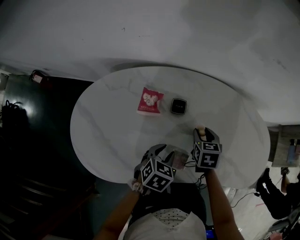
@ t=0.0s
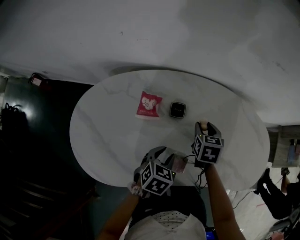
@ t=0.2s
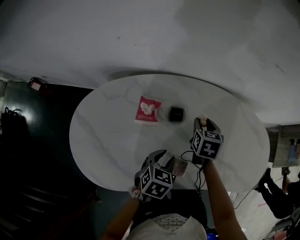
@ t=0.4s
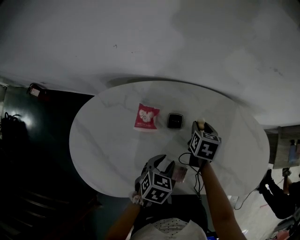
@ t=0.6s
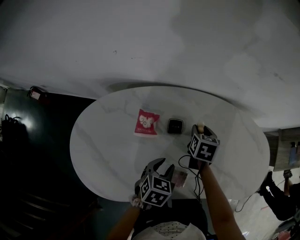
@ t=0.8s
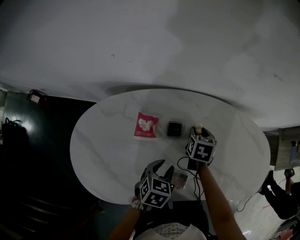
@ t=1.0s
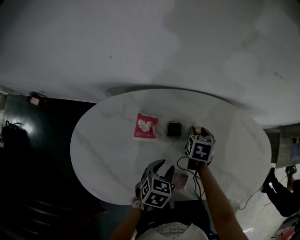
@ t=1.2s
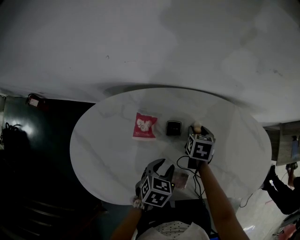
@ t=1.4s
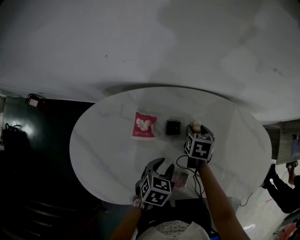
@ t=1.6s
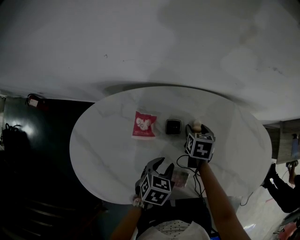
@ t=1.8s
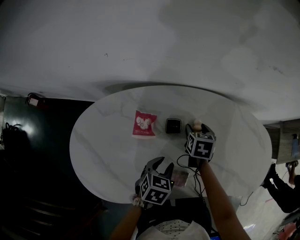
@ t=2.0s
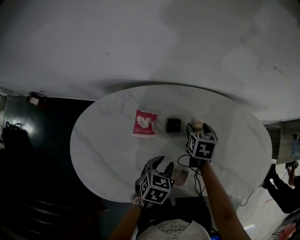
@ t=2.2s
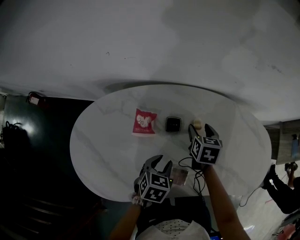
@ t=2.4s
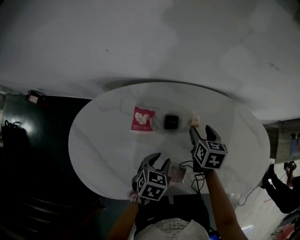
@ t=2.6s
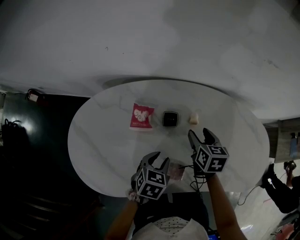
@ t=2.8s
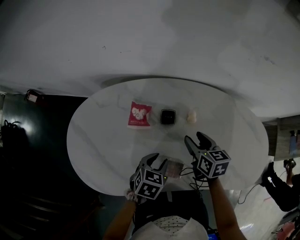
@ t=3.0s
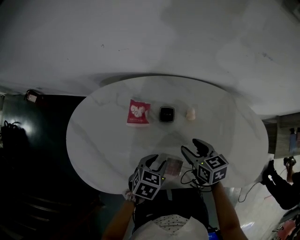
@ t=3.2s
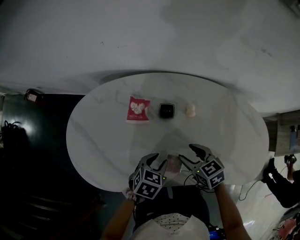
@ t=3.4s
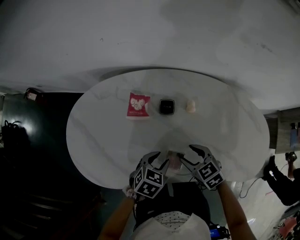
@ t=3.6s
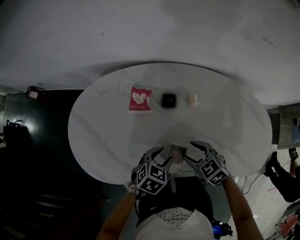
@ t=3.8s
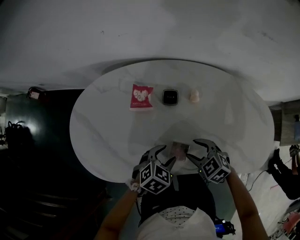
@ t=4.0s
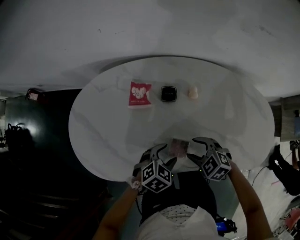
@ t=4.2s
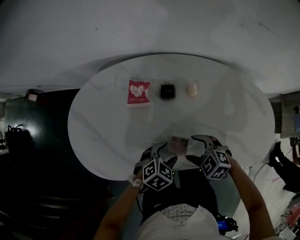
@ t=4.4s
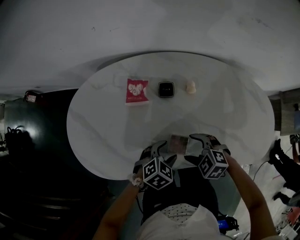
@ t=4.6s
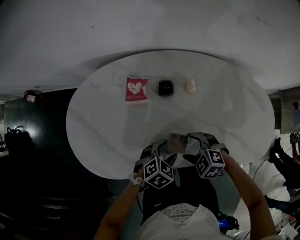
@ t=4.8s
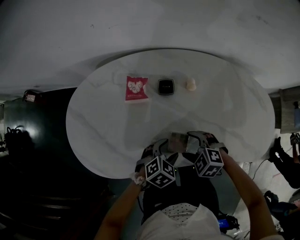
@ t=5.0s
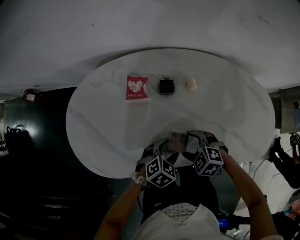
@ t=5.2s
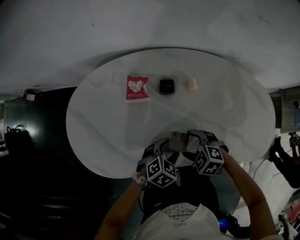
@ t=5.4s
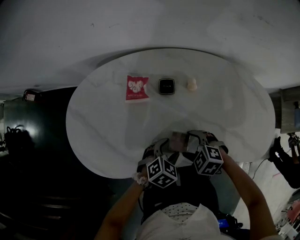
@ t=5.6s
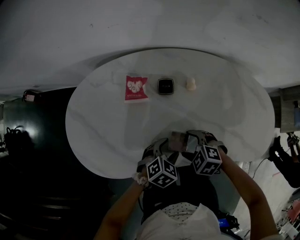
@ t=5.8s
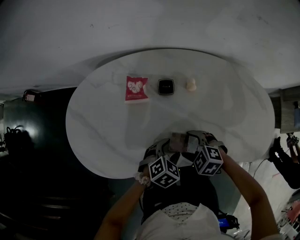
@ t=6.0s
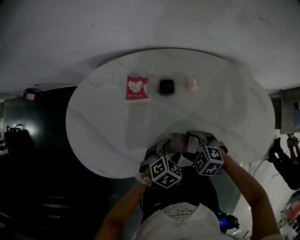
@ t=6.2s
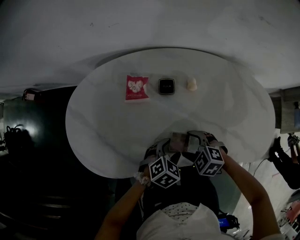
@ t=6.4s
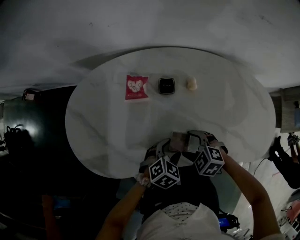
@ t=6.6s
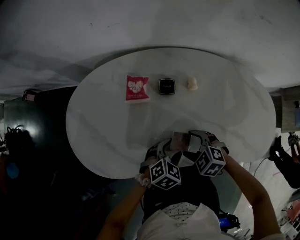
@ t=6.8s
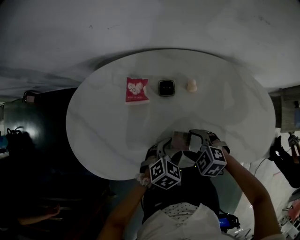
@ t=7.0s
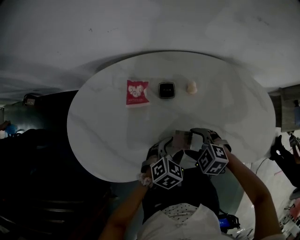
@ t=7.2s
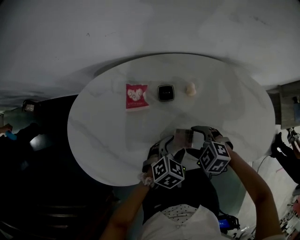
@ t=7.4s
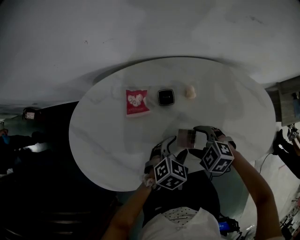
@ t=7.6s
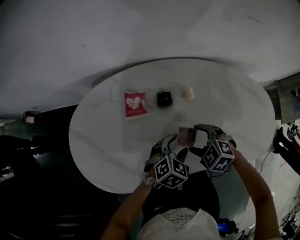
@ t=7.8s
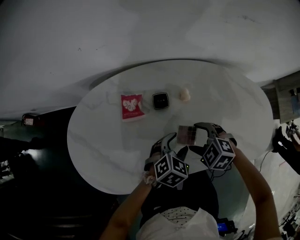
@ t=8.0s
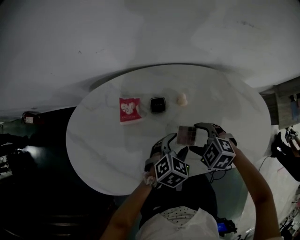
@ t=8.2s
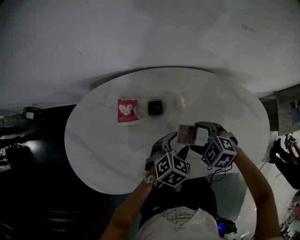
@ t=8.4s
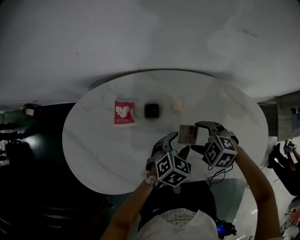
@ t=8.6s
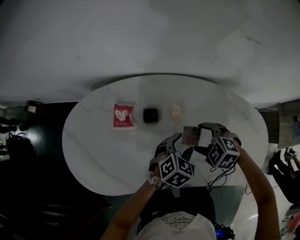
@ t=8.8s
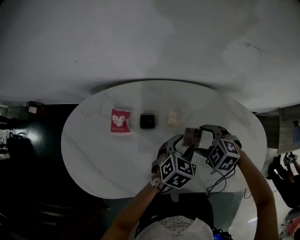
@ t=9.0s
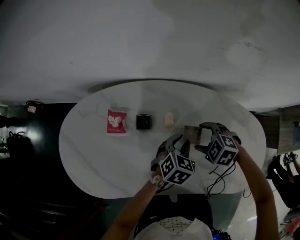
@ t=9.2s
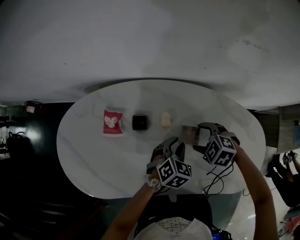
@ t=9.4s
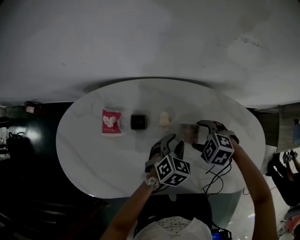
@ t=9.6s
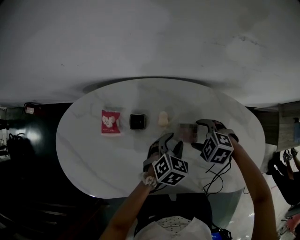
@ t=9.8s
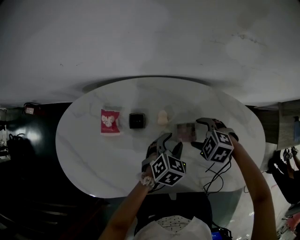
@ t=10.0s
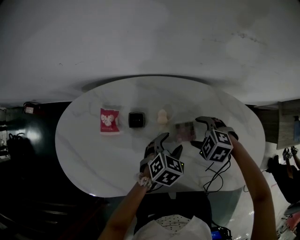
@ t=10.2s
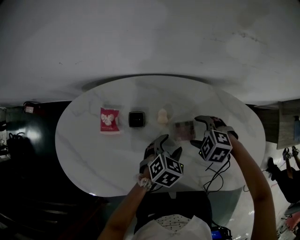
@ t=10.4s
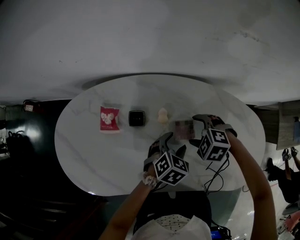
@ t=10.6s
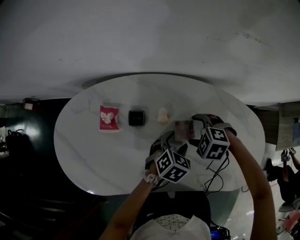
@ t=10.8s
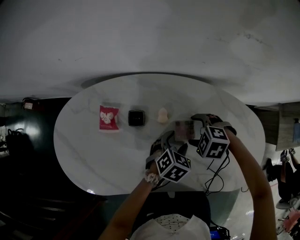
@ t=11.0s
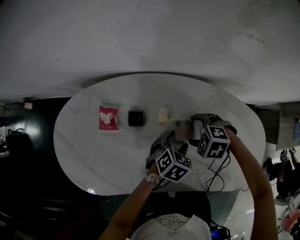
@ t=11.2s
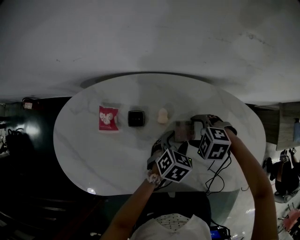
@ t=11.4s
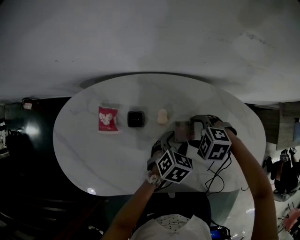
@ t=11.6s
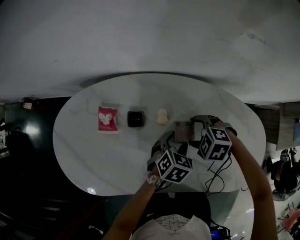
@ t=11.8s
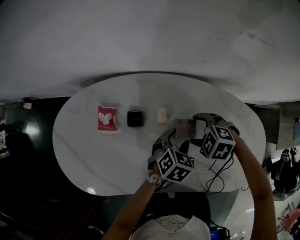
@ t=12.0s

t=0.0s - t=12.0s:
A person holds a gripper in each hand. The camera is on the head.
t=0.0s - t=1.6s: The right gripper goes some 10 cm forward.
t=1.6s - t=3.0s: The right gripper is displaced backward and upward by about 10 cm, and turns by some 30 degrees.
t=3.0s - t=4.4s: The right gripper moves about 15 cm, and rotates around the line of its fingers by roughly 50 degrees, counterclockwise from behind; the left gripper ends up some 10 cm from where it was, turns by about 30 degrees, and opens.
t=4.4s - t=6.0s: The grippers move only a little.
t=6.0s - t=7.6s: The right gripper ends up some 5 cm from where it was. The left gripper changes place by approximately 5 cm.
t=7.6s - t=9.0s: The grippers both shift to the right and forward by approximately 15 cm.
t=9.0s - t=12.0s: There are only small adjustments of the grippers.

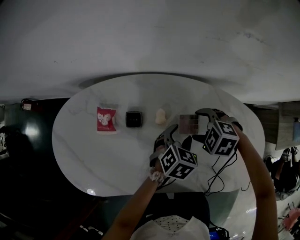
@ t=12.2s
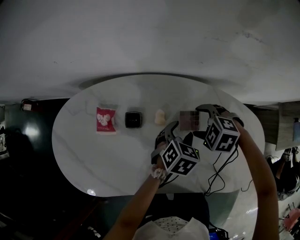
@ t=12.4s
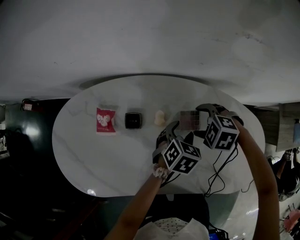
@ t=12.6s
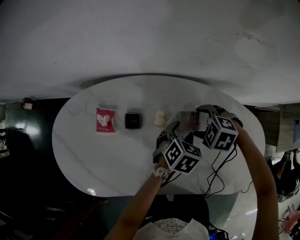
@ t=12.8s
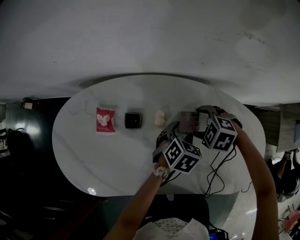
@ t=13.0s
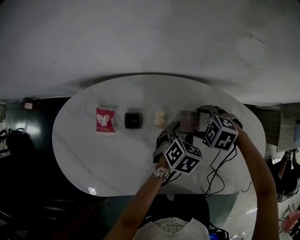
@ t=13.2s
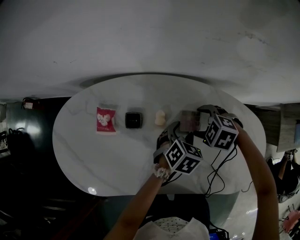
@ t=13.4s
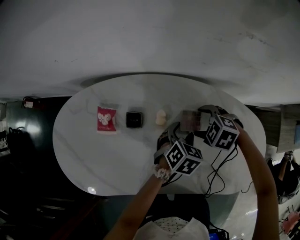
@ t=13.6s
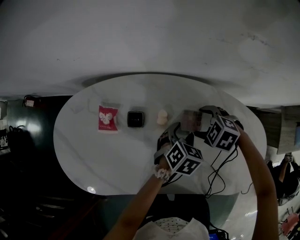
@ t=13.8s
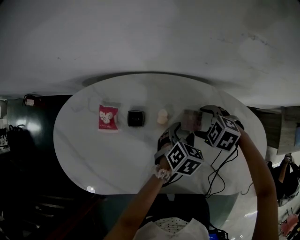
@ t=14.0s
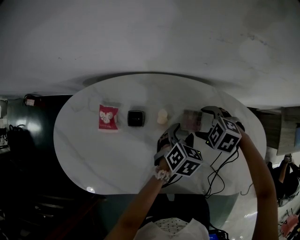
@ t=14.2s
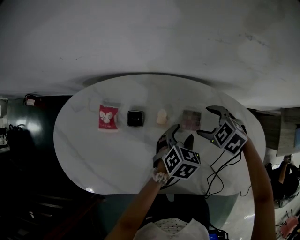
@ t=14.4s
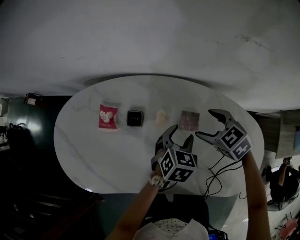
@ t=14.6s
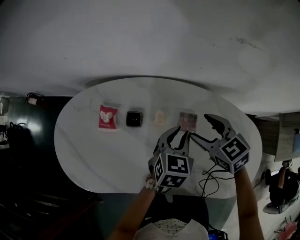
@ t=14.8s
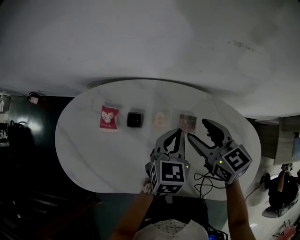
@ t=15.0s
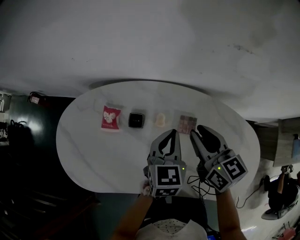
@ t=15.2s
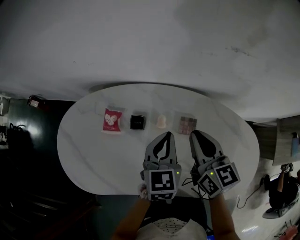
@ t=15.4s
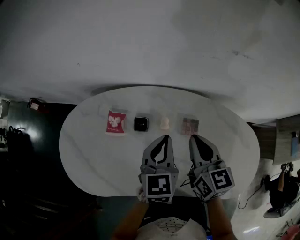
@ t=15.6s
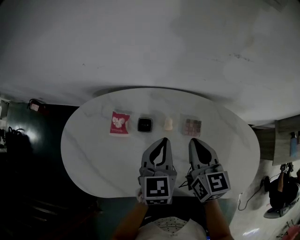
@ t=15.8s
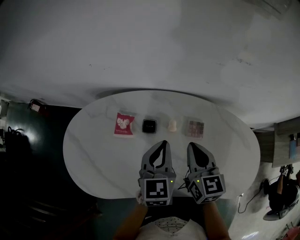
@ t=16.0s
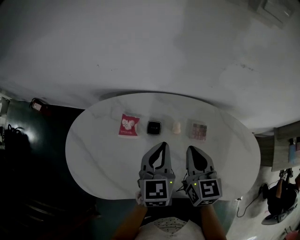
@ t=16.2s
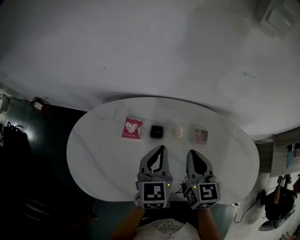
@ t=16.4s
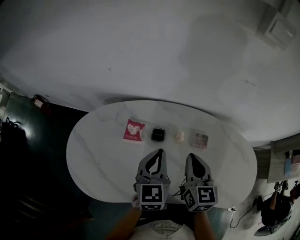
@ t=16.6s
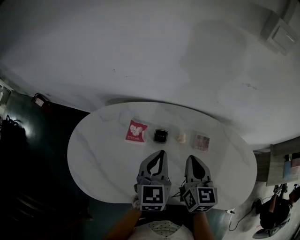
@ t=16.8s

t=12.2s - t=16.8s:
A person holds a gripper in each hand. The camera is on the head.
t=12.2s - t=13.8s: The grippers move only a little.
t=13.8s - t=15.2s: Both grippers travel together upward, about 15 cm. The right gripper angles its fingers upward, by some 50 degrees, and closes its fingers; the left gripper swivels some 30 degrees, and closes.
t=15.2s - t=16.8s: The right gripper travels to the left and backward by roughly 10 cm, and swivels about 20 degrees. The left gripper heads to the left and upward, covering roughly 15 cm.

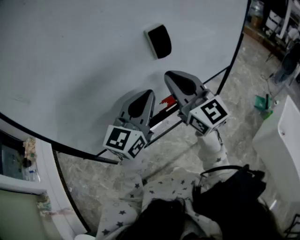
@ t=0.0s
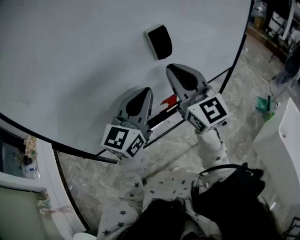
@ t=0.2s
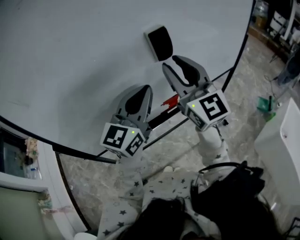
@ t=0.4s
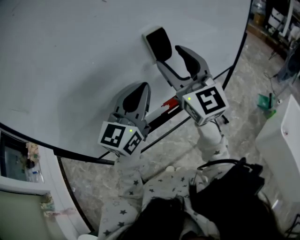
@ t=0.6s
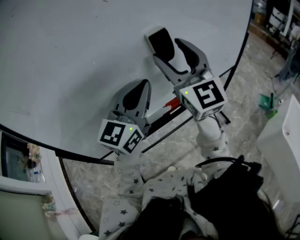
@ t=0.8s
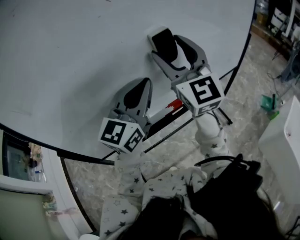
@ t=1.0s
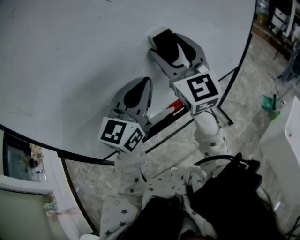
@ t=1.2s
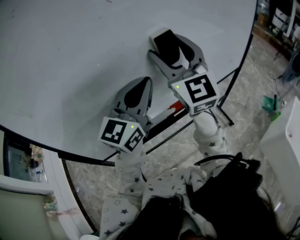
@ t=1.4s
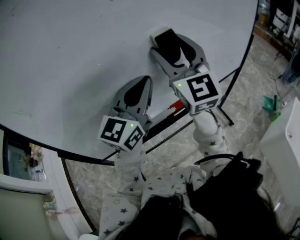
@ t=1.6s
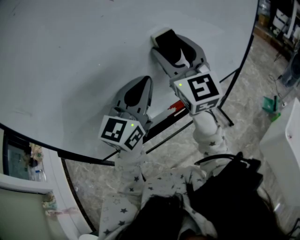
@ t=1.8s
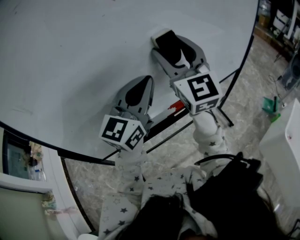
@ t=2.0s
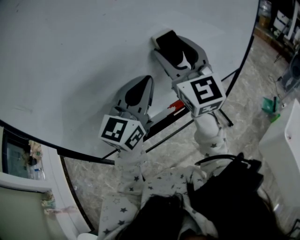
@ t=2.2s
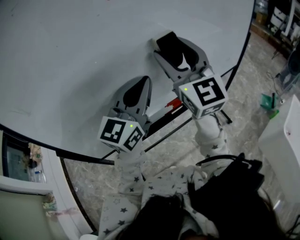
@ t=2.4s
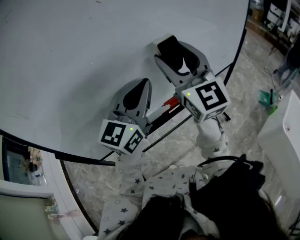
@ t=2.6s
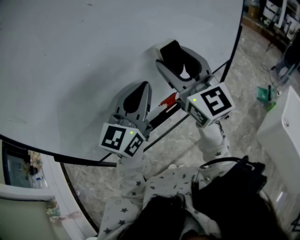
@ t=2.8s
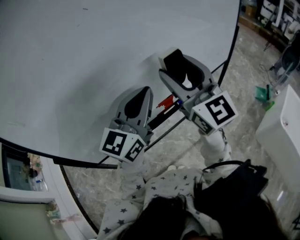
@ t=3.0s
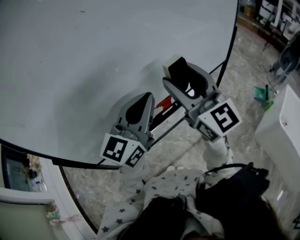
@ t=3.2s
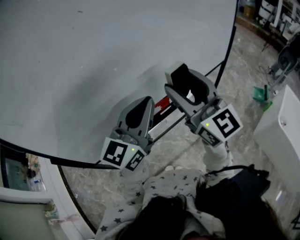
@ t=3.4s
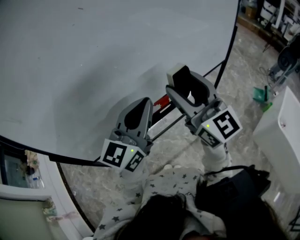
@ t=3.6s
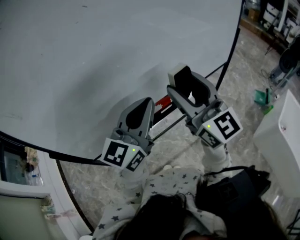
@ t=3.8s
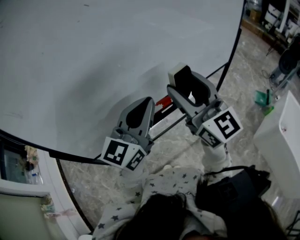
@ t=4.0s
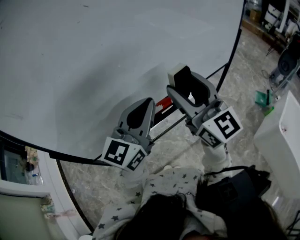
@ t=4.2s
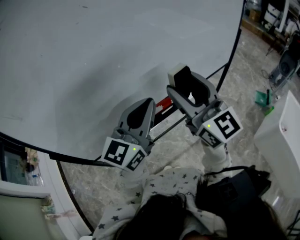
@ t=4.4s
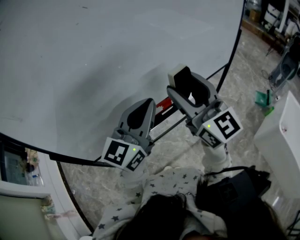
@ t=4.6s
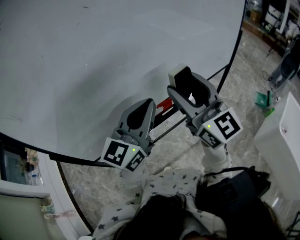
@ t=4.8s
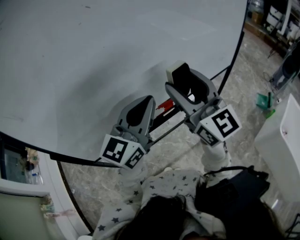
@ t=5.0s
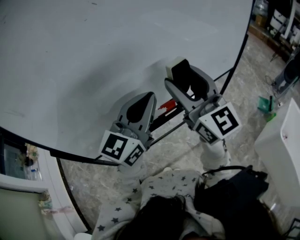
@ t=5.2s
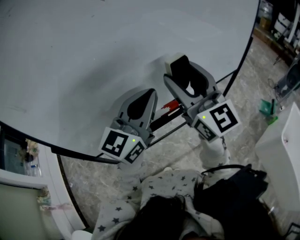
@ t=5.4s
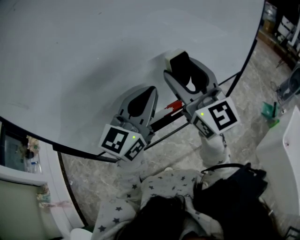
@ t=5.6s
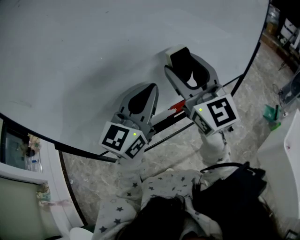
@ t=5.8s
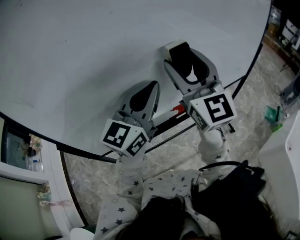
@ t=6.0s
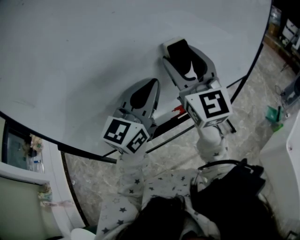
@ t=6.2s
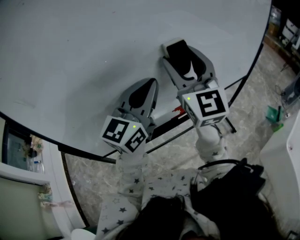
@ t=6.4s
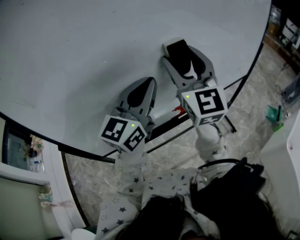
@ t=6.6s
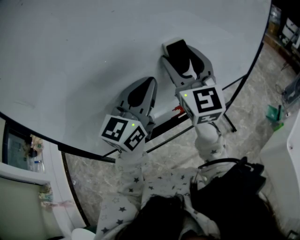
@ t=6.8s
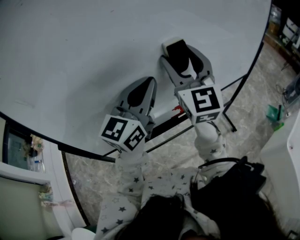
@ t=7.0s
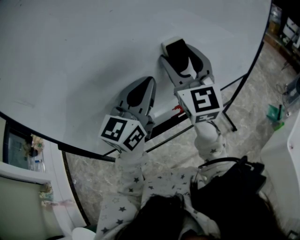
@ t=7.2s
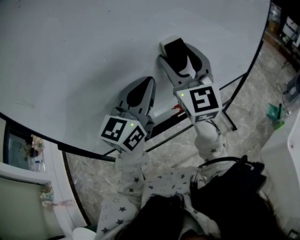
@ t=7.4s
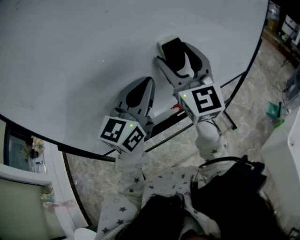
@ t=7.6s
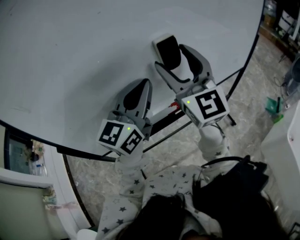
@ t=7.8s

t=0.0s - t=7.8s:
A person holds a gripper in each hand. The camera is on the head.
t=0.0s - t=1.6s: The right gripper goes some 10 cm forward and upward, changes its angle by about 20 degrees, and opens; the left gripper is displaced forward by roughly 5 cm.
t=1.6s - t=3.2s: The right gripper is displaced backward, to the right and downward by about 10 cm. The left gripper shifts about 5 cm to the right.
t=3.2s - t=4.6s: The grippers move only a little.
t=4.6s - t=6.2s: The right gripper shifts roughly 10 cm forward, to the left and upward; the left gripper goes about 5 cm forward.
t=6.2s - t=7.8s: The grippers make only small movements.
